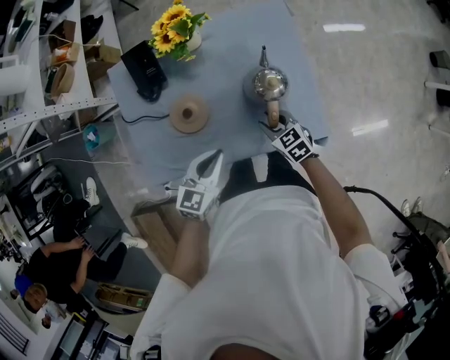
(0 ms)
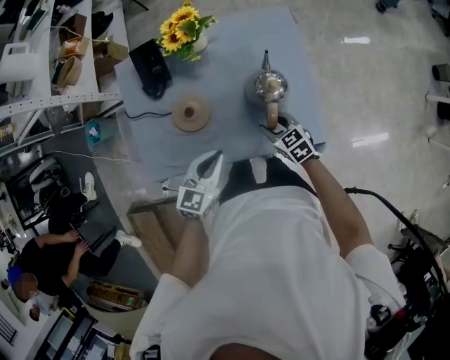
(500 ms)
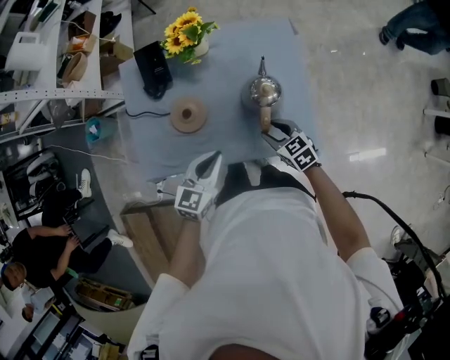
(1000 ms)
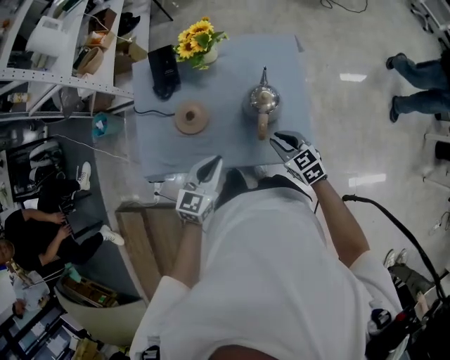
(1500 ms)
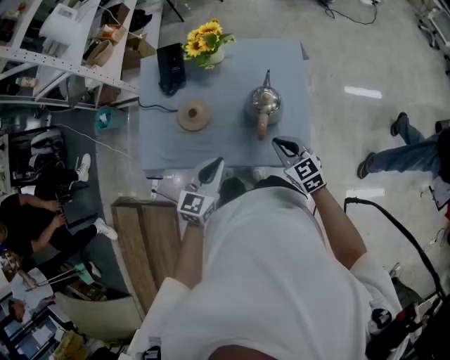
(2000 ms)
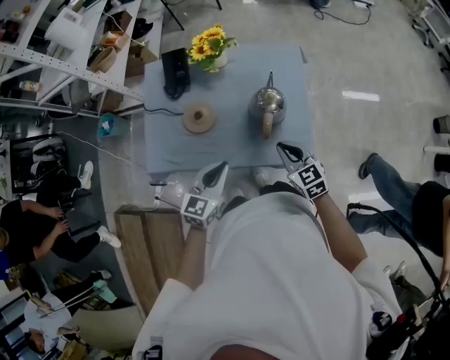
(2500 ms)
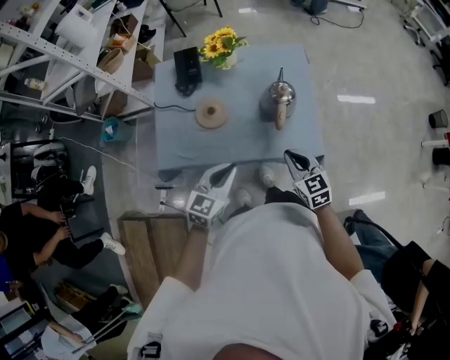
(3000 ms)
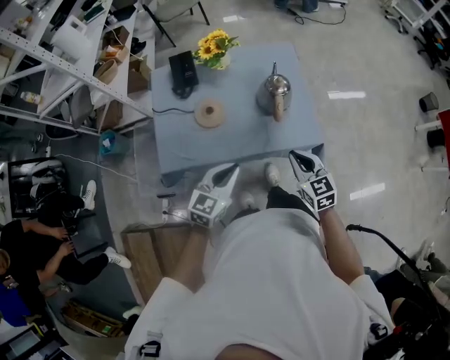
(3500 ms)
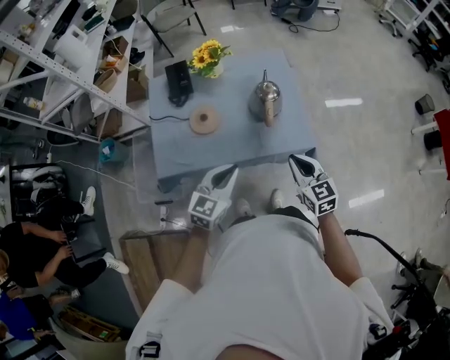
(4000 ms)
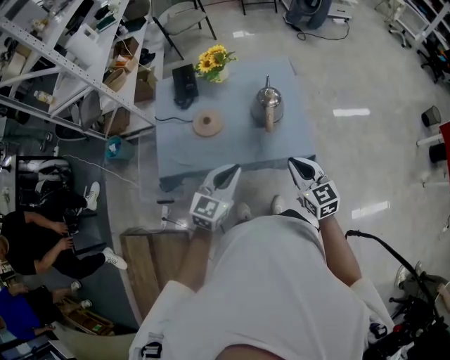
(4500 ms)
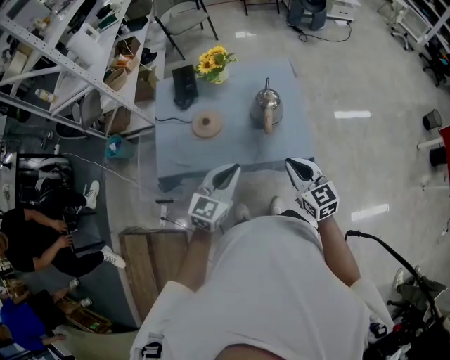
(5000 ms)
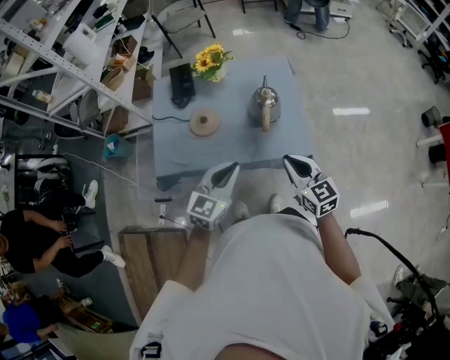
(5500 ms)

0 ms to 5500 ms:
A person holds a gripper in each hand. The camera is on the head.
0 ms to 2000 ms: The left gripper heads backward, covering roughly 5 cm. The right gripper goes about 15 cm upward, to the right and backward, and closes.
2000 ms to 3500 ms: The grippers both shift backward and to the left by approximately 15 cm. The right gripper swivels roughly 20 degrees.
3500 ms to 5500 ms: The left gripper travels to the right and upward by about 10 cm; the right gripper moves upward, about 5 cm.

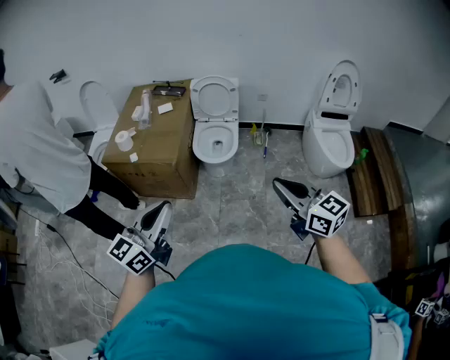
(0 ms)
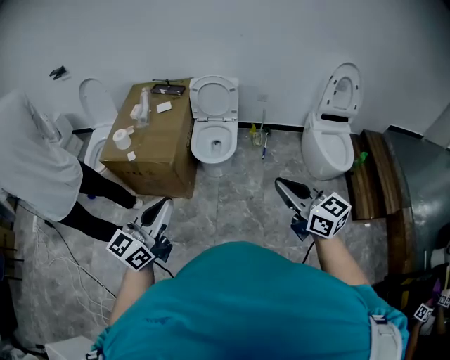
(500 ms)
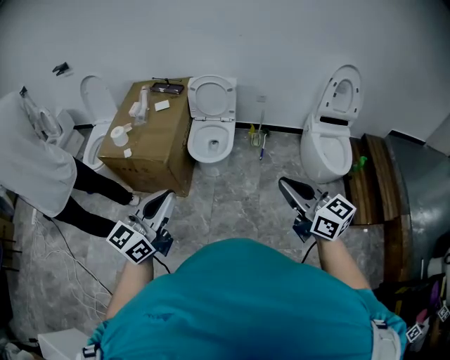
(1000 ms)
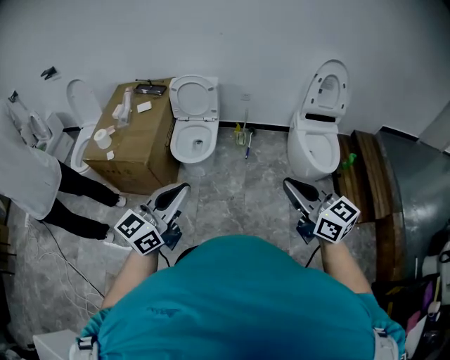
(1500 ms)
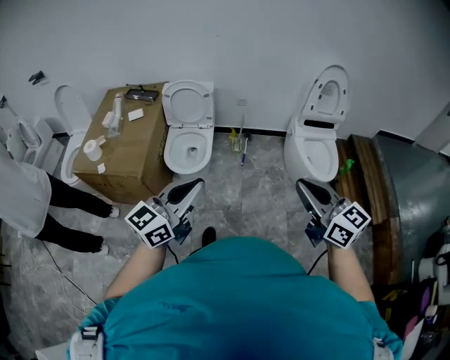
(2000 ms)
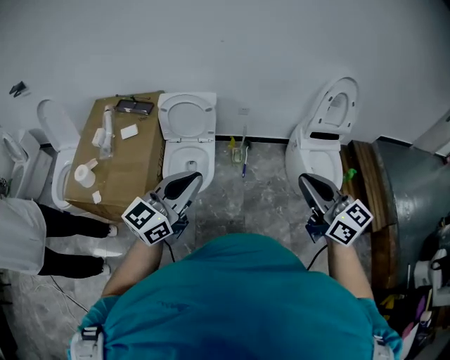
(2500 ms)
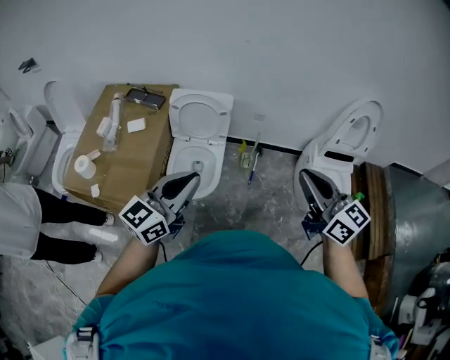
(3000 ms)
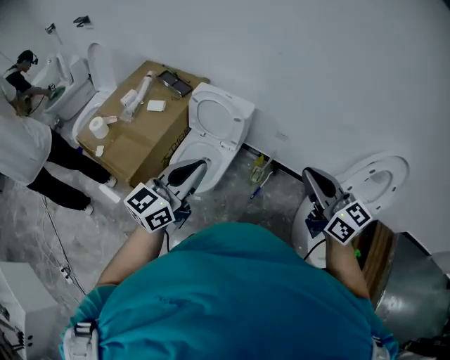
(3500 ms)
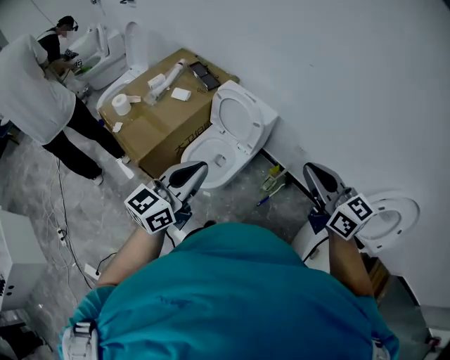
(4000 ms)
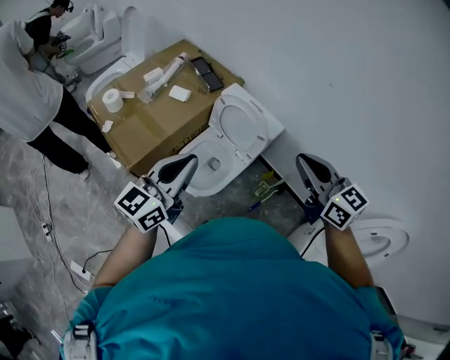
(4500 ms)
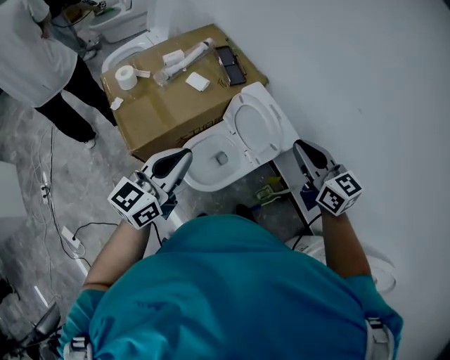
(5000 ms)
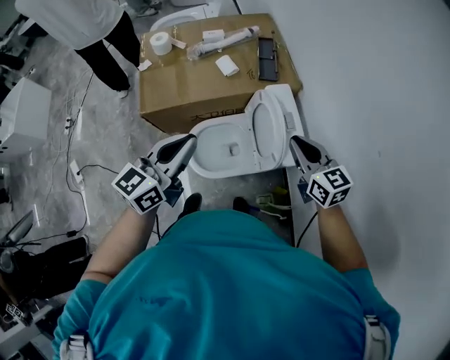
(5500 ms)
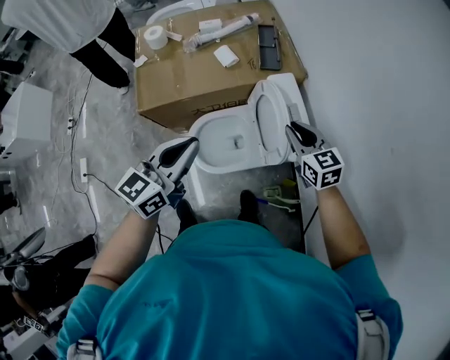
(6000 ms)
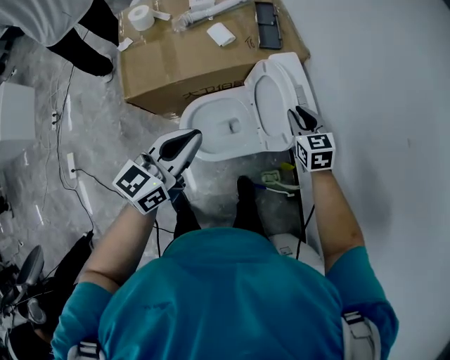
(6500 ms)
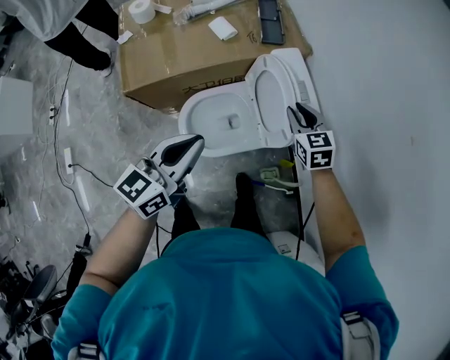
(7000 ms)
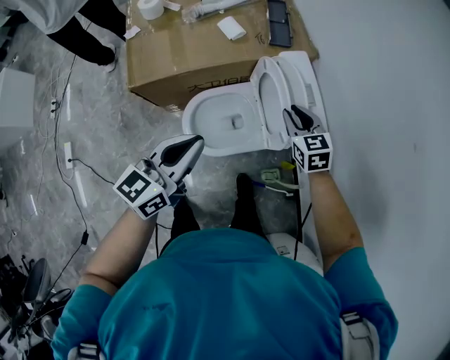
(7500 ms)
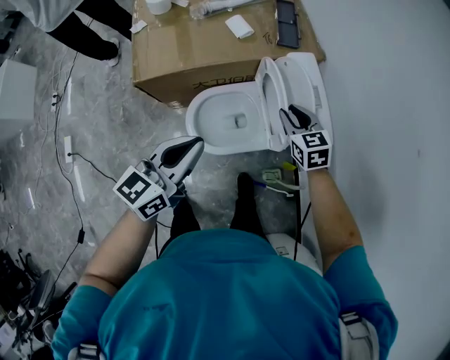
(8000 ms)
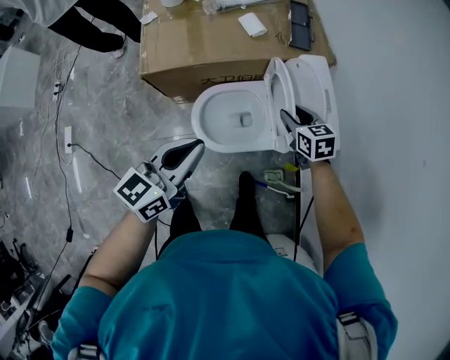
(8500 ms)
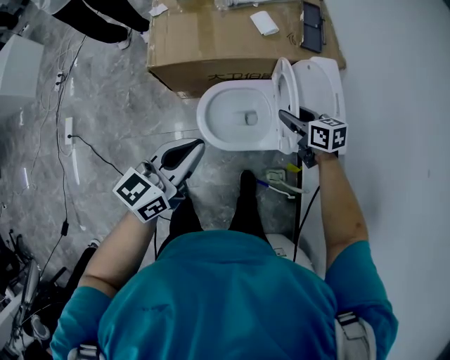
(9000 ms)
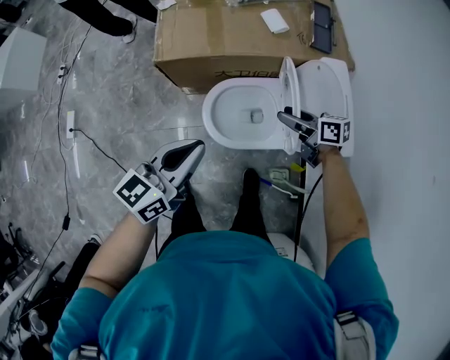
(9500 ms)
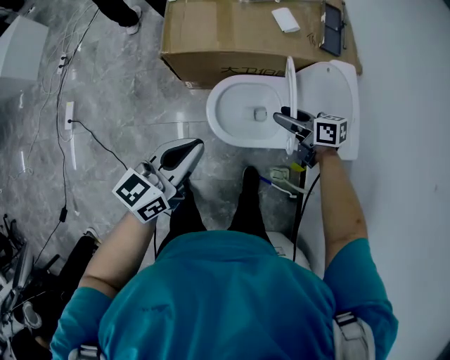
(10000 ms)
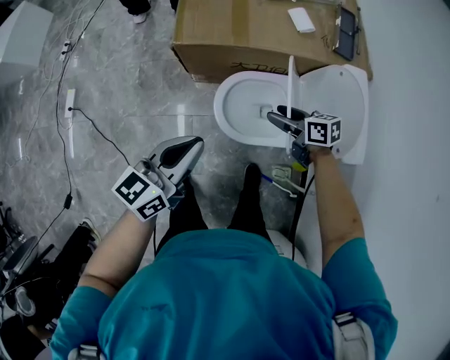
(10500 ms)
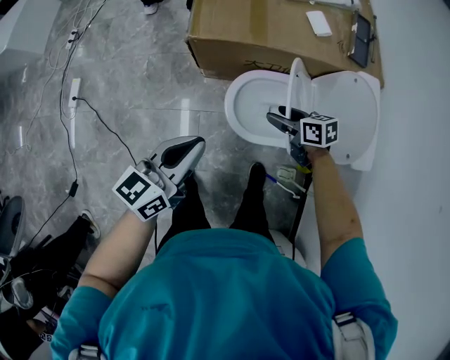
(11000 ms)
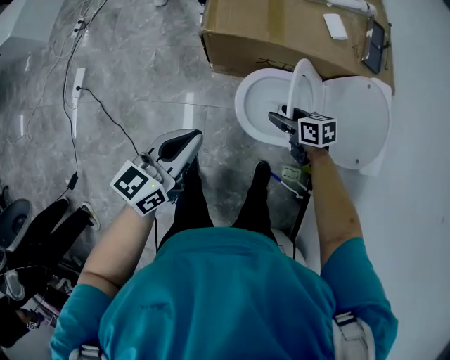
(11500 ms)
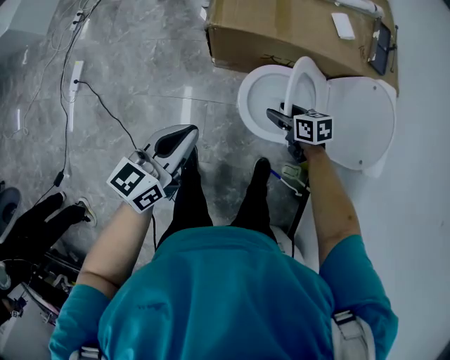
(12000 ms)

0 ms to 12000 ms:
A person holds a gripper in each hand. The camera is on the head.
0 ms to 2000 ms: Both grippers travel together to the right and forward, about 25 cm.
2000 ms to 4000 ms: The right gripper shifts by approximately 50 cm, and turns by roughly 40 degrees. Meanwhile the left gripper ends up roughly 40 cm from where it was, and turns by about 40 degrees.
4000 ms to 6000 ms: The right gripper ends up some 50 cm from where it was, and rotates roughly 40 degrees. The left gripper shifts by roughly 25 cm, and turns by roughly 40 degrees.
6000 ms to 8000 ms: The left gripper shifts roughly 10 cm downward, while the right gripper travels downward and to the left by some 15 cm.
8000 ms to 10000 ms: The left gripper ends up some 10 cm from where it was. Meanwhile the right gripper moves some 15 cm, rotates about 50 degrees, and opens up.
10000 ms to 12000 ms: The grippers both shift to the left and downward by roughly 15 cm. The right gripper turns by approximately 20 degrees.

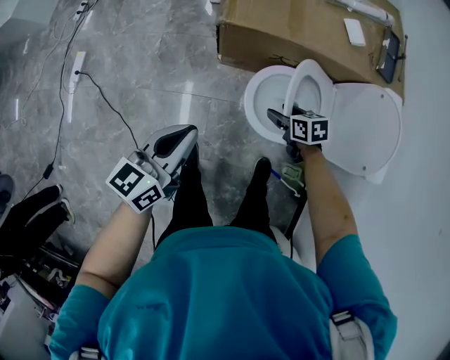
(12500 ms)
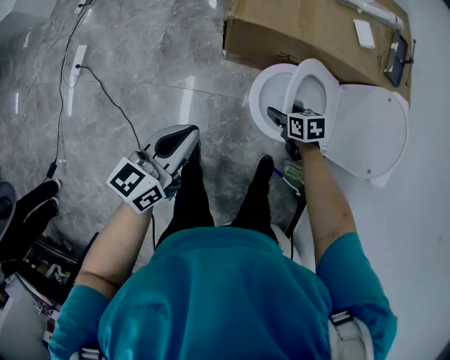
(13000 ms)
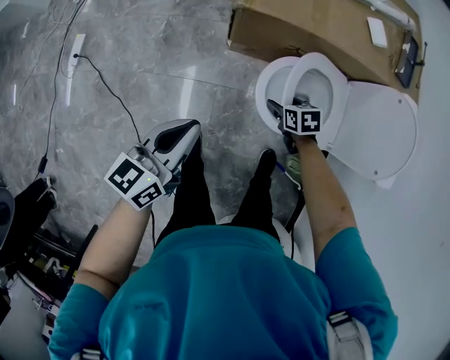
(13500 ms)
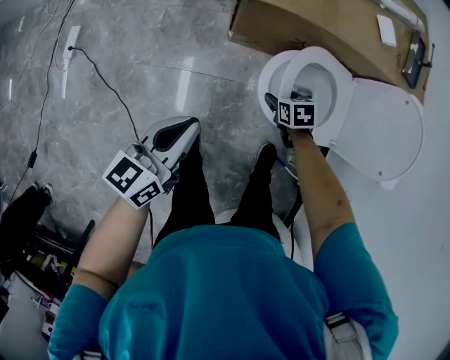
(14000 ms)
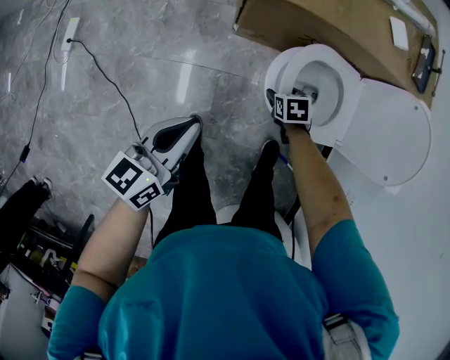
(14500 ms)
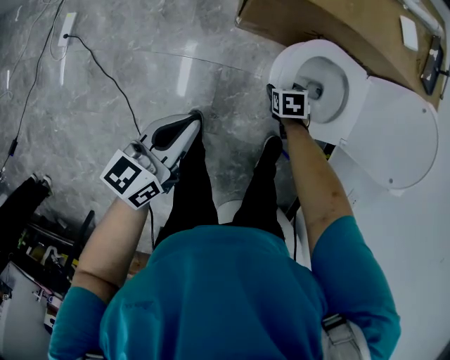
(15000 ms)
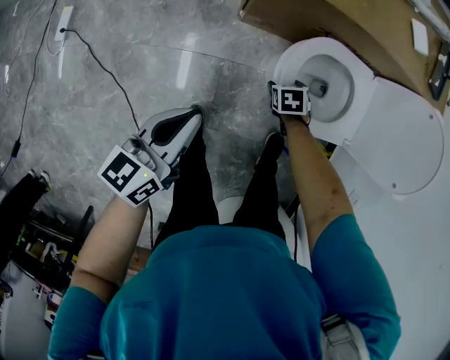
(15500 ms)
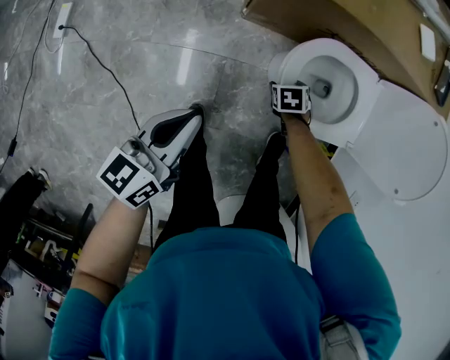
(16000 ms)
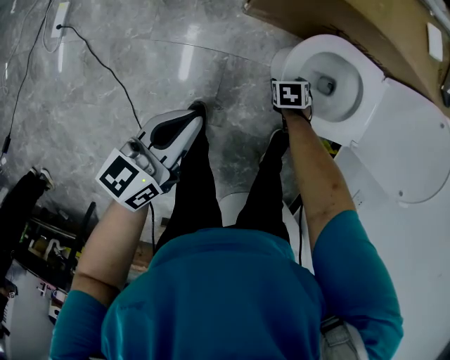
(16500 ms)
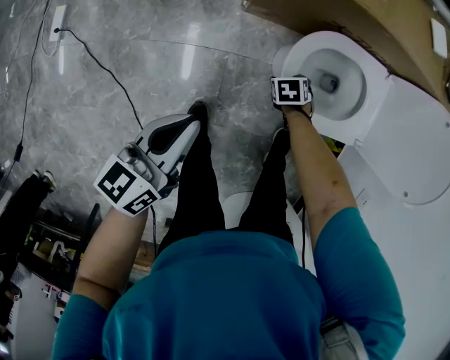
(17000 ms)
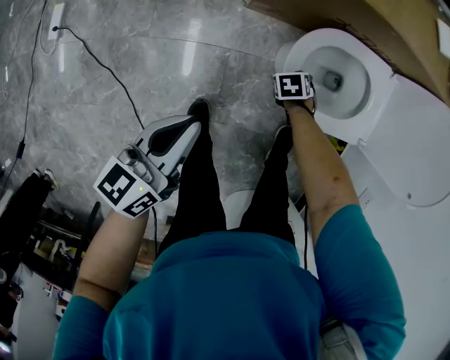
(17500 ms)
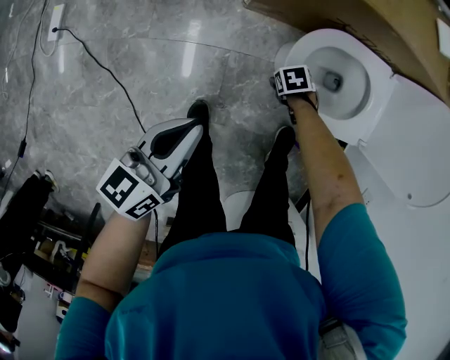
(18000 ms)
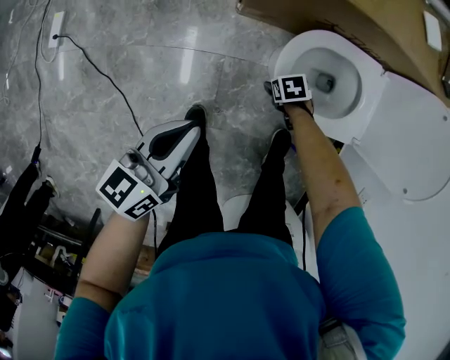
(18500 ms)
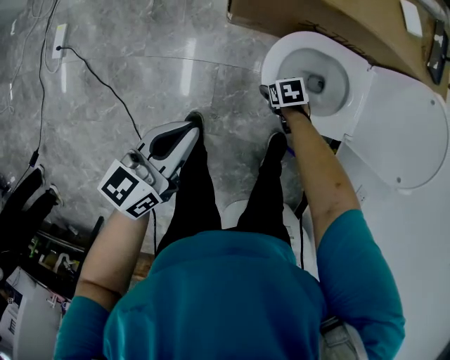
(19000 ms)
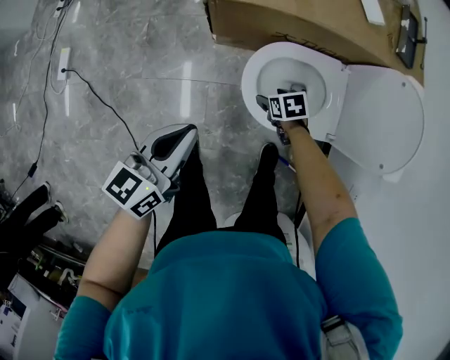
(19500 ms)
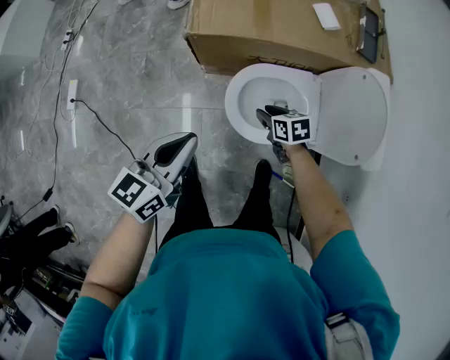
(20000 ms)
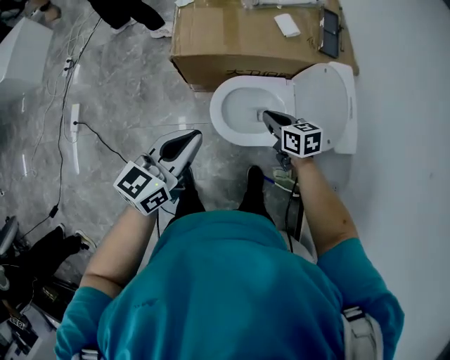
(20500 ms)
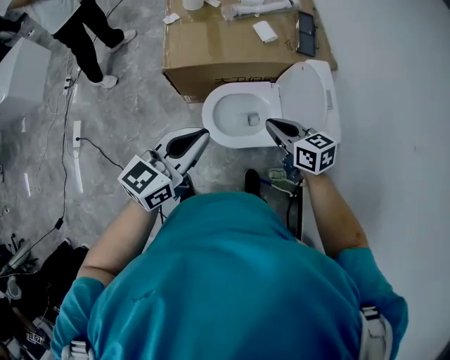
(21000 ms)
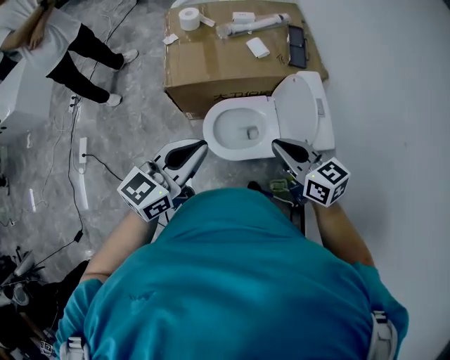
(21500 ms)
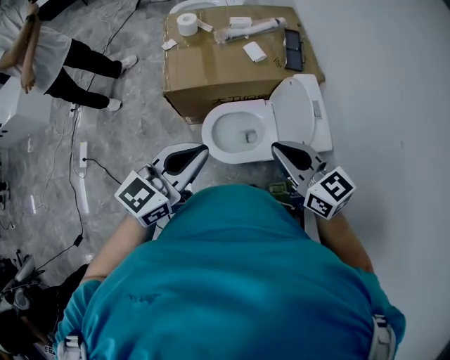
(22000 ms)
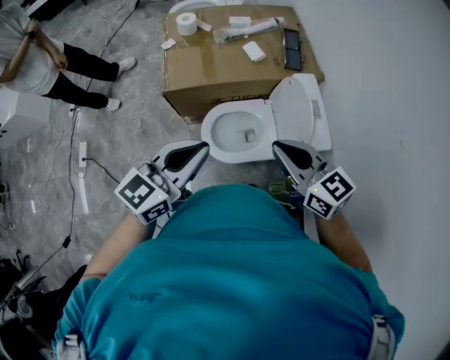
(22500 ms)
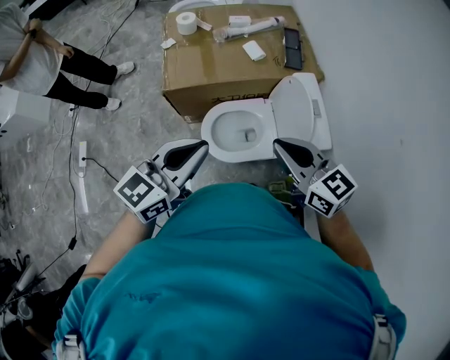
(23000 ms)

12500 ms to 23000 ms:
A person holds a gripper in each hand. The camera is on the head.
12500 ms to 14500 ms: Both grippers move downward, roughly 10 cm. The right gripper turns by roughly 20 degrees.
14500 ms to 16500 ms: The right gripper travels downward by about 10 cm, while the left gripper is displaced downward by some 5 cm.
16500 ms to 19000 ms: The grippers stay close to where they were, moving slightly.
19000 ms to 21000 ms: The left gripper is displaced upward by some 30 cm, and turns by some 30 degrees. Meanwhile the right gripper travels upward by roughly 50 cm, points its fingers roughly 50 degrees further upward, and closes its fingers.
21000 ms to 23000 ms: The left gripper heads upward, covering approximately 10 cm. Meanwhile the right gripper moves upward, roughly 15 cm, and rotates about 20 degrees.
